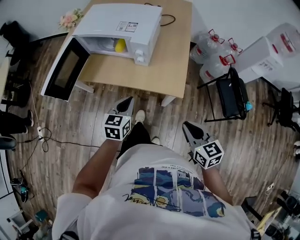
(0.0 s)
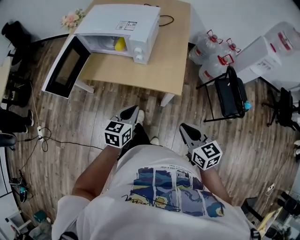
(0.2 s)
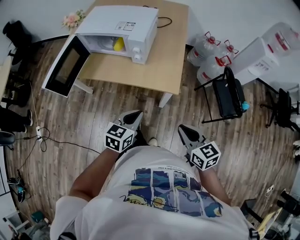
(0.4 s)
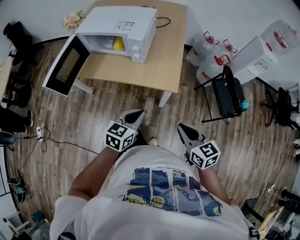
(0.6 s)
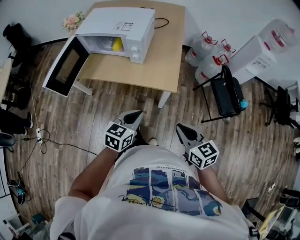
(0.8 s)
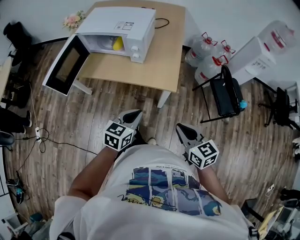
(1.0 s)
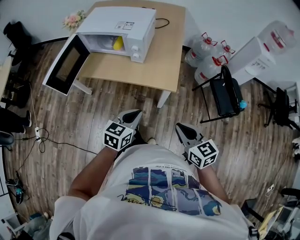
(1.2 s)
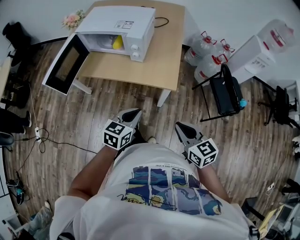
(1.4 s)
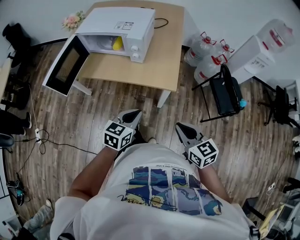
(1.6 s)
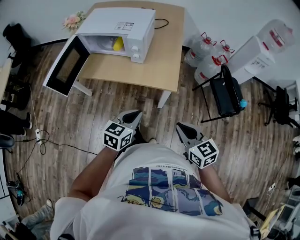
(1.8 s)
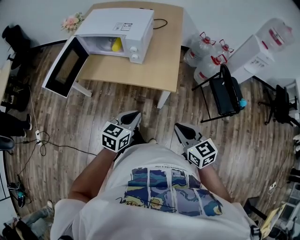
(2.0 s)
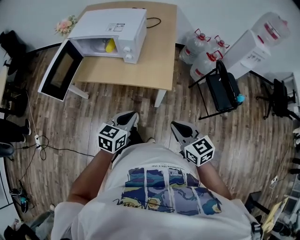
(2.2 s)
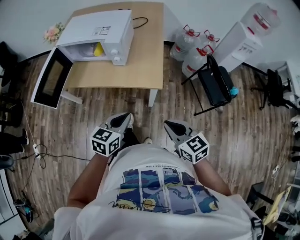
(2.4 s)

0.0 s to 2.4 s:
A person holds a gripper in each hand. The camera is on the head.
0.0 to 1.2 s: The right gripper shifts some 5 cm backward; the left gripper travels backward and to the right by some 15 cm.
1.2 to 2.4 s: Both grippers stay about where they are.

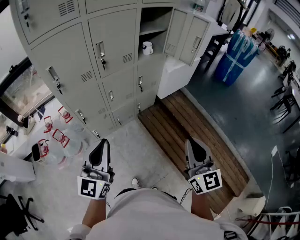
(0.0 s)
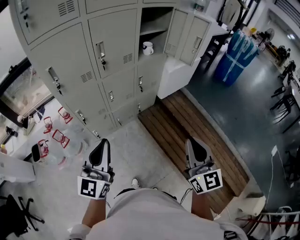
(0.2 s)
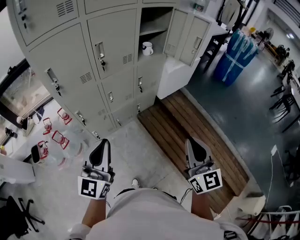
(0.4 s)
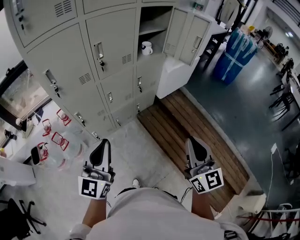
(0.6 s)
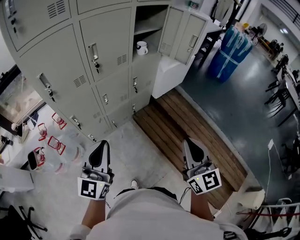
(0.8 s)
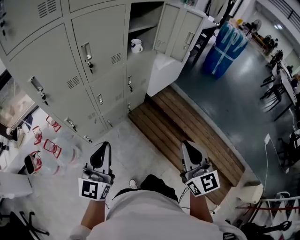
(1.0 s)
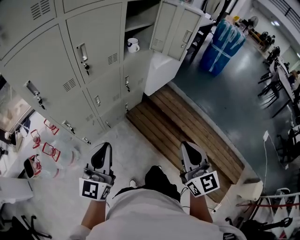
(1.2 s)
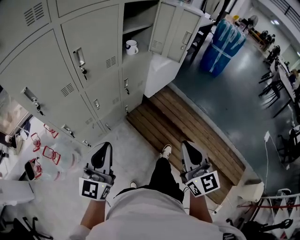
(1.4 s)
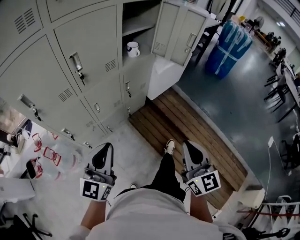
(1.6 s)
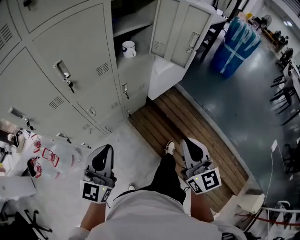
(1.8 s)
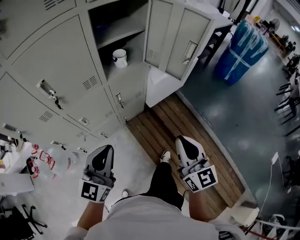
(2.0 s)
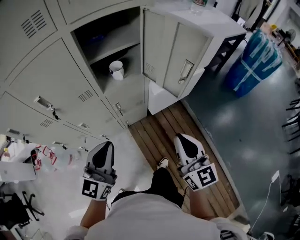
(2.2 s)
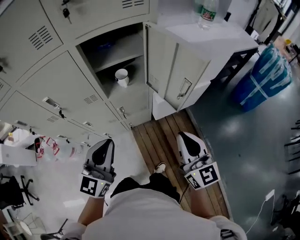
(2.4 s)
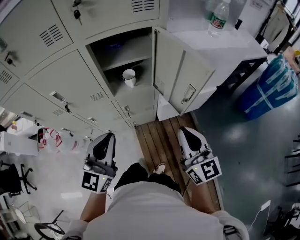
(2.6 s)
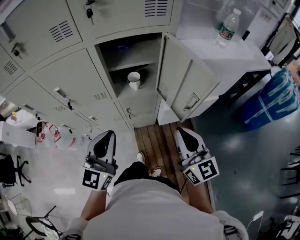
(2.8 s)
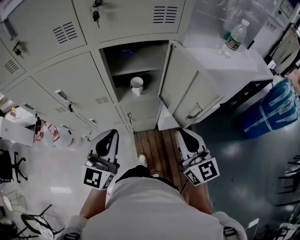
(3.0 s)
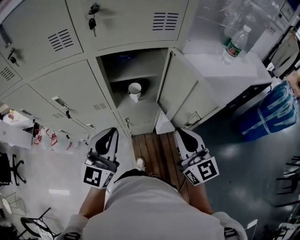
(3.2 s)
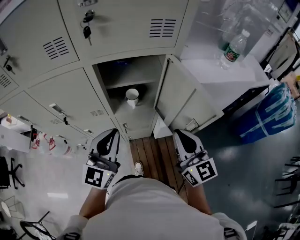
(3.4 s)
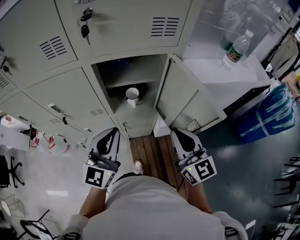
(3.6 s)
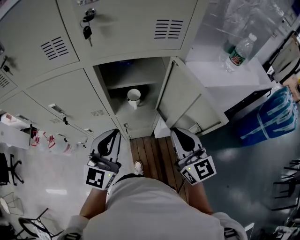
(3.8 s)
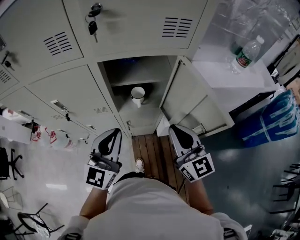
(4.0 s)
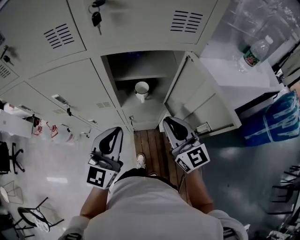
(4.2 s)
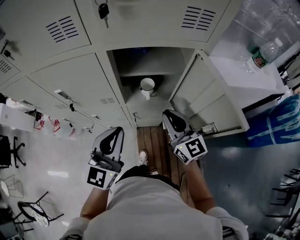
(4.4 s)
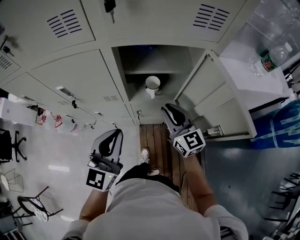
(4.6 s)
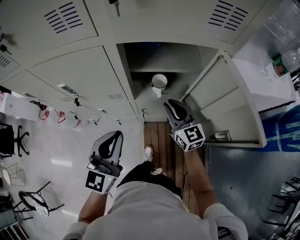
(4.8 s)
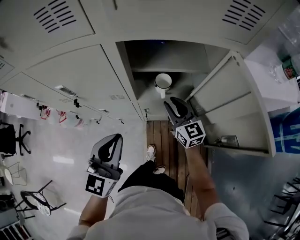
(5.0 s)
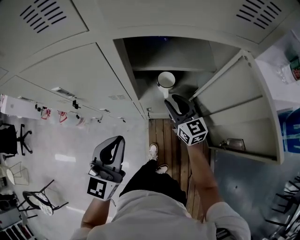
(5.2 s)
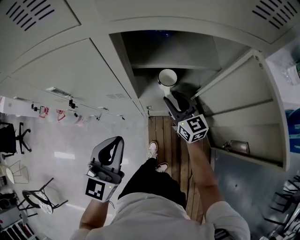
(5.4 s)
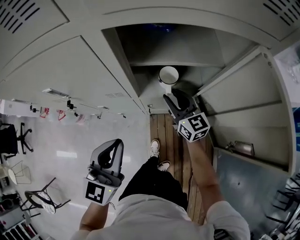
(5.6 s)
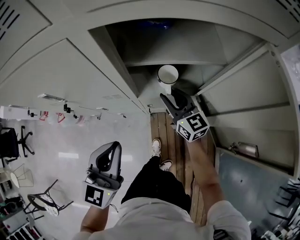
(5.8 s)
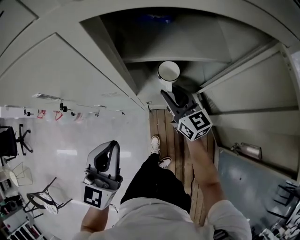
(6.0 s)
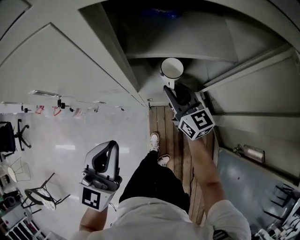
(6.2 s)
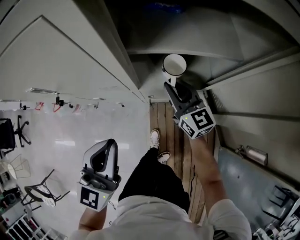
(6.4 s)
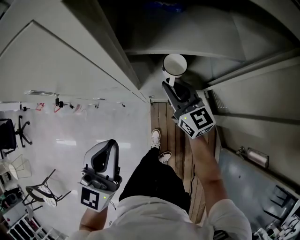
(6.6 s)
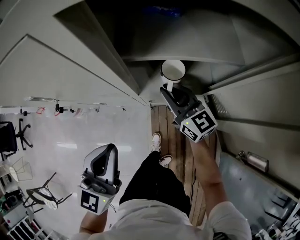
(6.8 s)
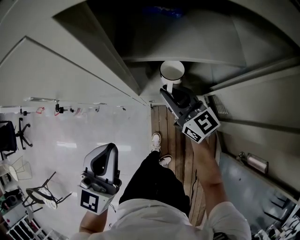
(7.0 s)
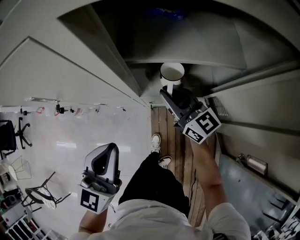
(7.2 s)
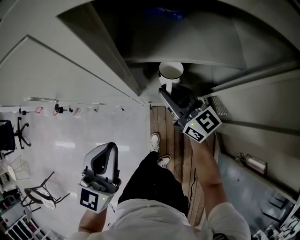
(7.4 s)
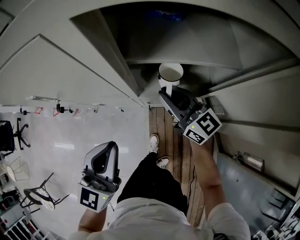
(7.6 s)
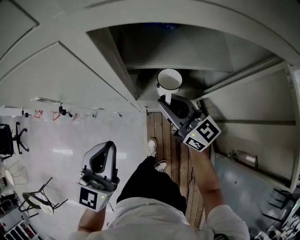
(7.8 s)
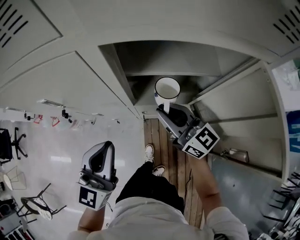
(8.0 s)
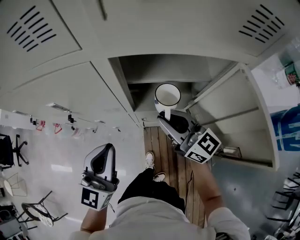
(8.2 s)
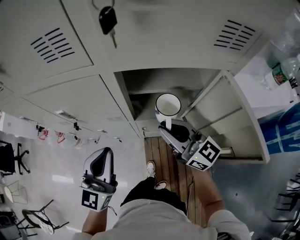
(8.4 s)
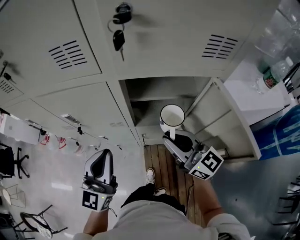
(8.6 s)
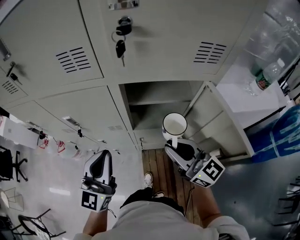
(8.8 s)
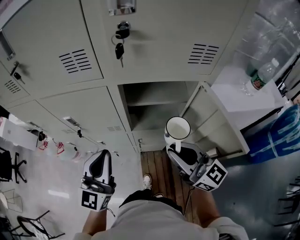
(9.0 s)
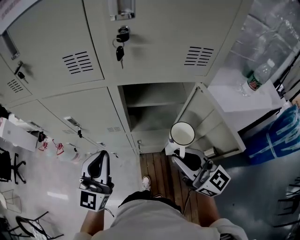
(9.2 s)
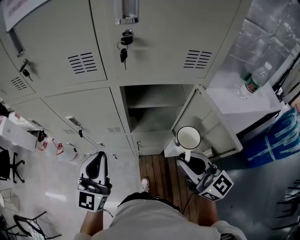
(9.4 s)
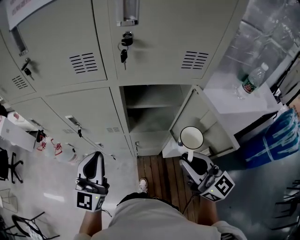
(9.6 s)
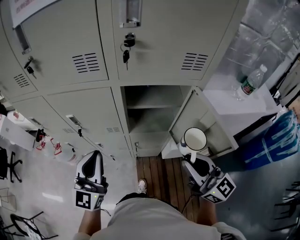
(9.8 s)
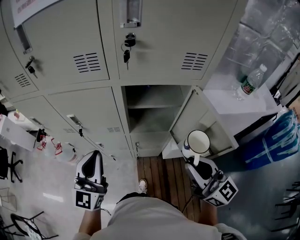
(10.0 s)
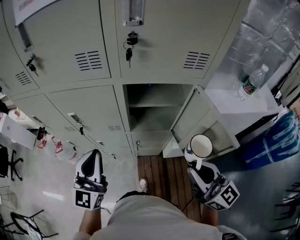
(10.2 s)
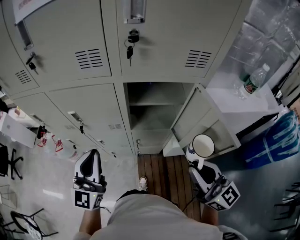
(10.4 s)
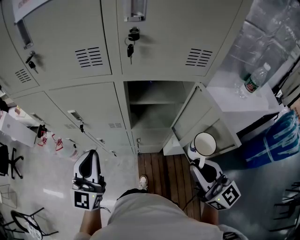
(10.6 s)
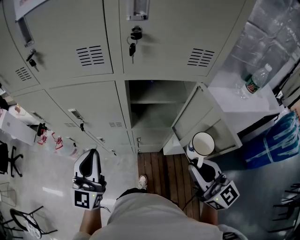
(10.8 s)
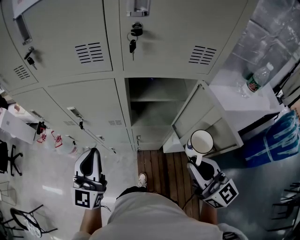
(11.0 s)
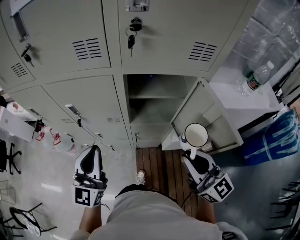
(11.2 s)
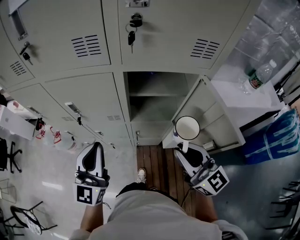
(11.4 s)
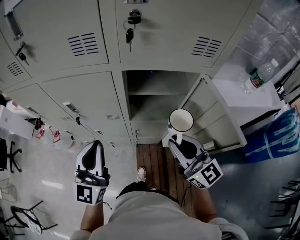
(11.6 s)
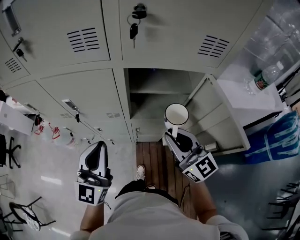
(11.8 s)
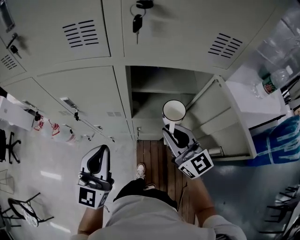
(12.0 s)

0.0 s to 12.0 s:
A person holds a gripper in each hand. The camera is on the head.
0.0 to 1.6 s: The two grippers go roughly 10 cm forward.
1.6 to 3.0 s: The right gripper changes place by some 40 cm, and swivels some 40 degrees; the left gripper shifts by approximately 40 cm, and rotates about 30 degrees.
3.0 to 4.4 s: The left gripper is displaced forward by approximately 5 cm, while the right gripper goes roughly 15 cm forward and to the left.
4.4 to 6.0 s: The right gripper travels downward and forward by approximately 20 cm, and opens its fingers, while the left gripper shifts roughly 10 cm downward and to the left.
6.0 to 7.6 s: The grippers move only a little.
7.6 to 9.0 s: The left gripper travels upward by about 15 cm. The right gripper moves upward and backward, approximately 30 cm.
9.0 to 10.4 s: The left gripper ends up approximately 5 cm from where it was, while the right gripper shifts approximately 10 cm backward.
10.4 to 12.0 s: The right gripper is displaced forward and downward by approximately 20 cm; the left gripper heads downward, covering some 5 cm.

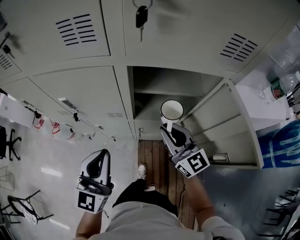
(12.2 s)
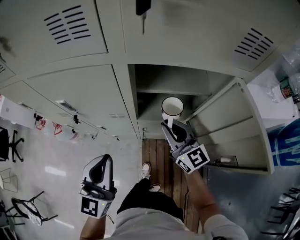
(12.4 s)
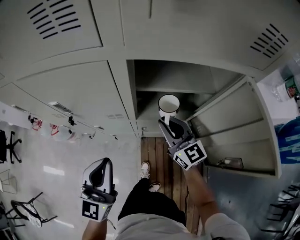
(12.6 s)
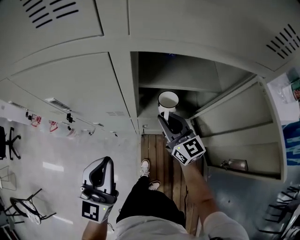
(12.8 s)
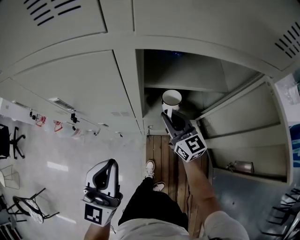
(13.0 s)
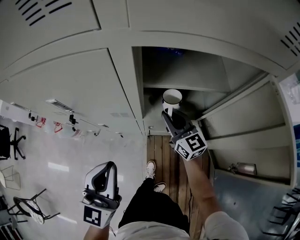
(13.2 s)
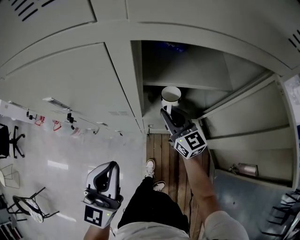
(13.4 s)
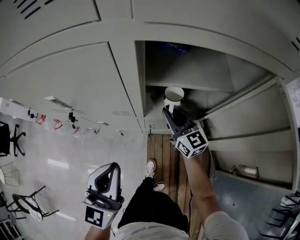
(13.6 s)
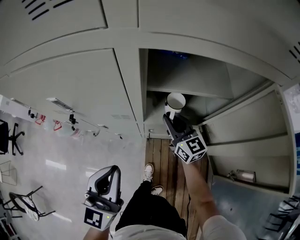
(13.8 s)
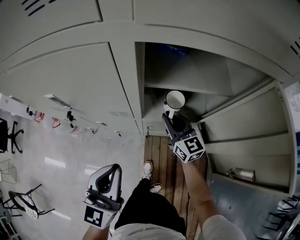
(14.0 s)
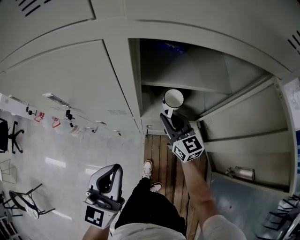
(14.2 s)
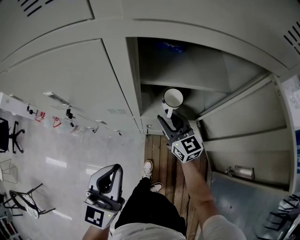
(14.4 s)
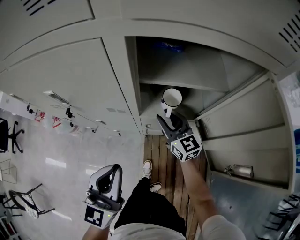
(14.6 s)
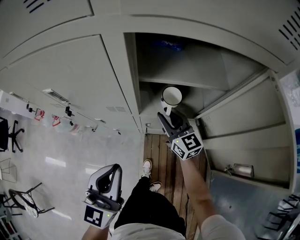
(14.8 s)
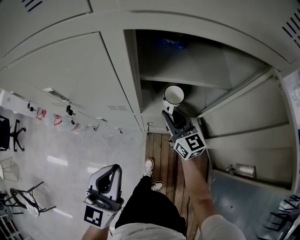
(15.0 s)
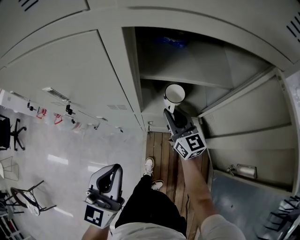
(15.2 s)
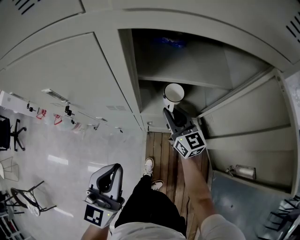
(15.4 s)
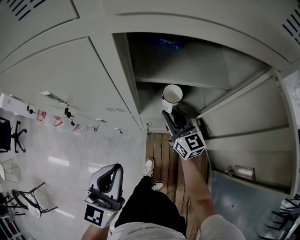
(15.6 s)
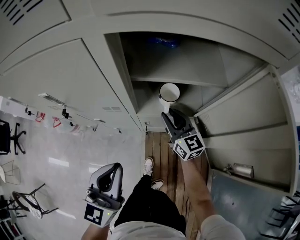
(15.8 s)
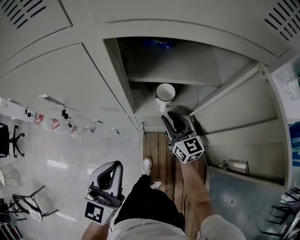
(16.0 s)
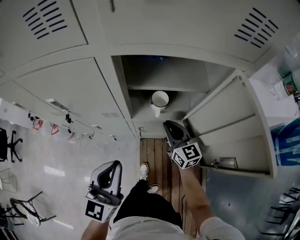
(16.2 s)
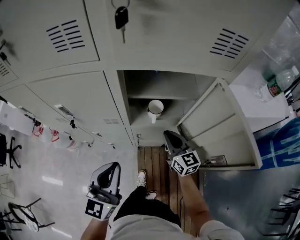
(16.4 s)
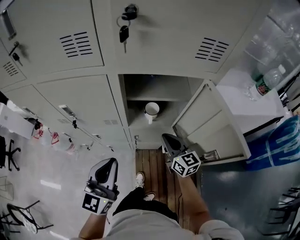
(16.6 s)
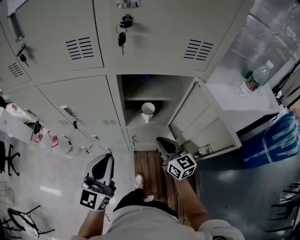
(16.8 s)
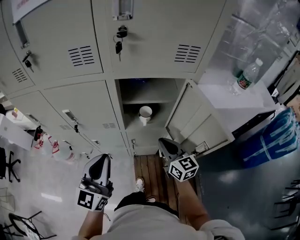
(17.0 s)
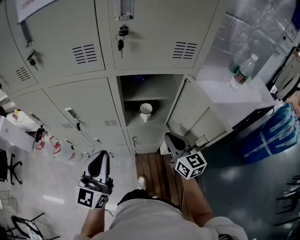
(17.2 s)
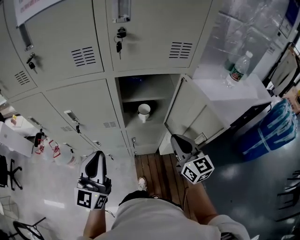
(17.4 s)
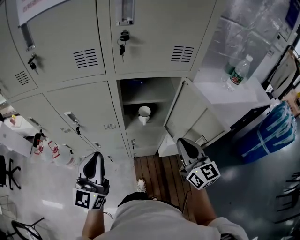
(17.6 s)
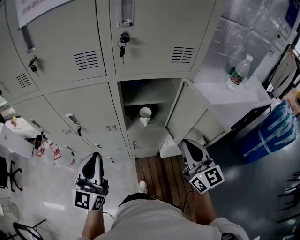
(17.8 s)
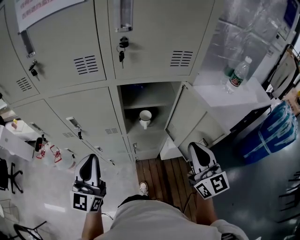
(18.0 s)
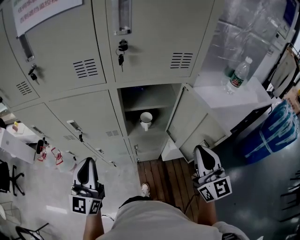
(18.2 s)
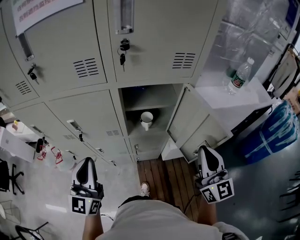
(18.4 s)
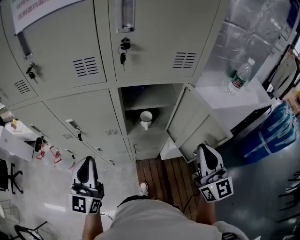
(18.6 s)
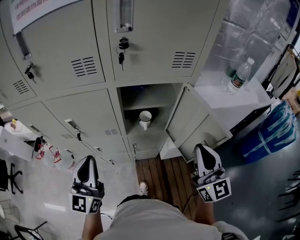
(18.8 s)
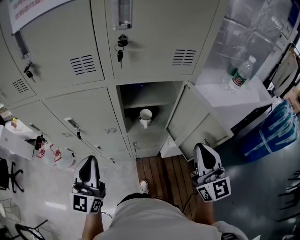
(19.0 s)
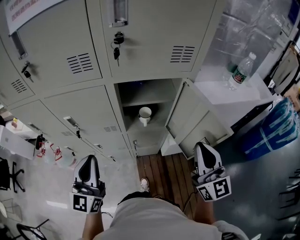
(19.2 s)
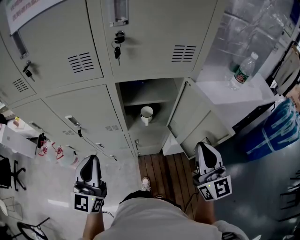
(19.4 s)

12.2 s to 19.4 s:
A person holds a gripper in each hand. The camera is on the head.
12.2 to 13.6 s: The right gripper moves downward and forward, roughly 20 cm. The left gripper moves downward, some 10 cm.
13.6 to 15.0 s: The grippers make only small movements.
15.0 to 16.6 s: The right gripper is displaced backward, upward and to the right by approximately 15 cm; the left gripper goes approximately 5 cm upward.
16.6 to 18.0 s: The right gripper travels upward and backward by about 25 cm, and changes its angle by about 30 degrees; the left gripper moves upward and to the left, approximately 10 cm.
18.0 to 19.4 s: The grippers make only small movements.

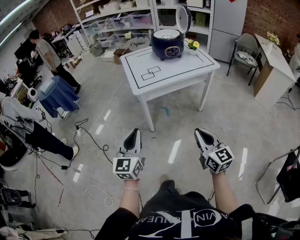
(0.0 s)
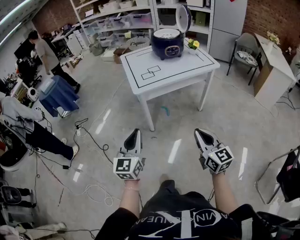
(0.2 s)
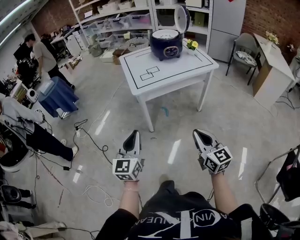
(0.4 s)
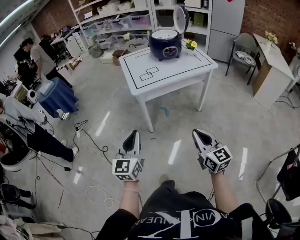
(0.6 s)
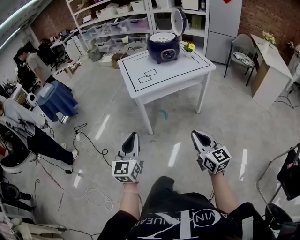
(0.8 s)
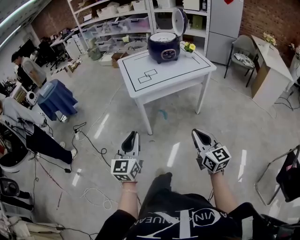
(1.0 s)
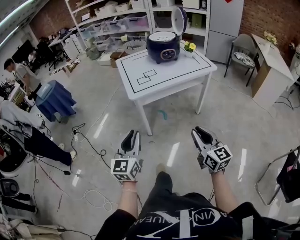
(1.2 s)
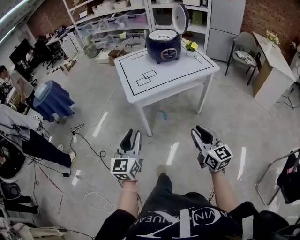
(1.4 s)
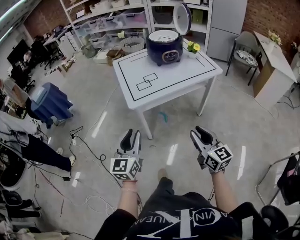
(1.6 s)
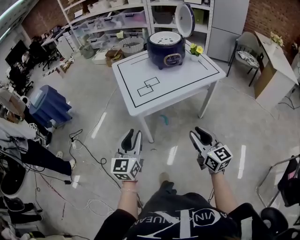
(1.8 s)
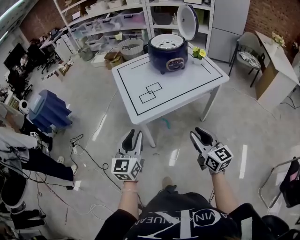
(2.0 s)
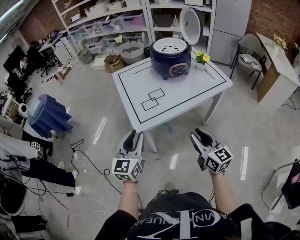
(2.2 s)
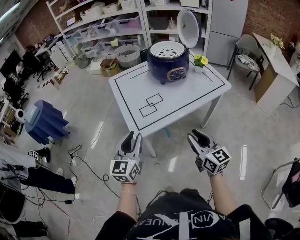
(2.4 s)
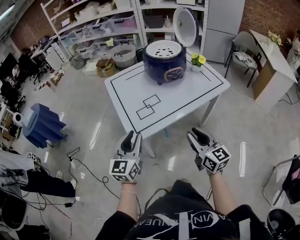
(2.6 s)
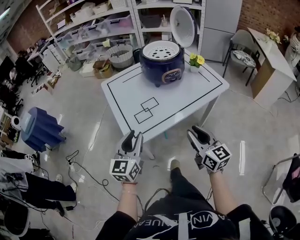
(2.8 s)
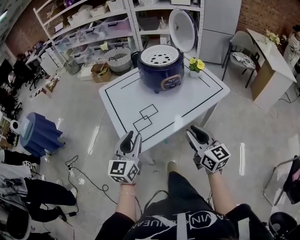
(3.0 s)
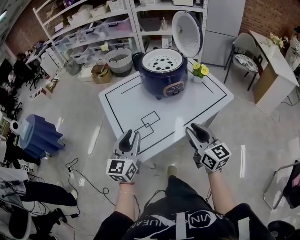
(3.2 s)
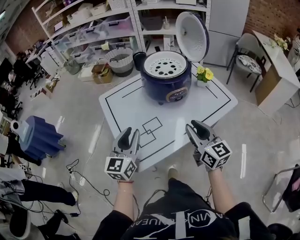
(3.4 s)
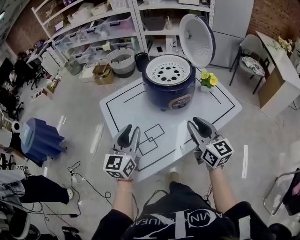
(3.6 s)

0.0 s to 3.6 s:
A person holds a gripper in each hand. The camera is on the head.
0.0 to 1.8 s: The grippers both shift forward by roughly 20 cm. The right gripper opens.
1.8 to 3.6 s: Both grippers travel together forward, approximately 40 cm.
